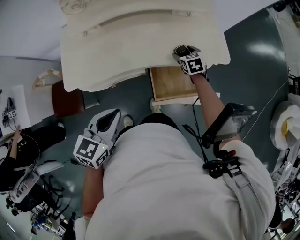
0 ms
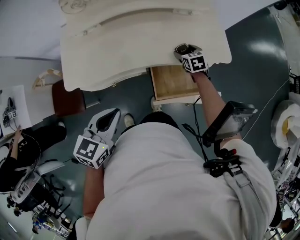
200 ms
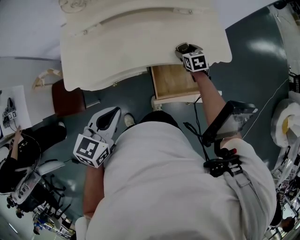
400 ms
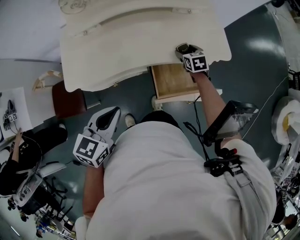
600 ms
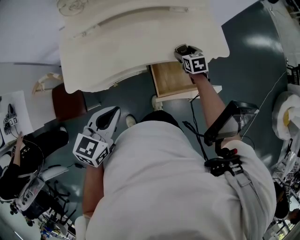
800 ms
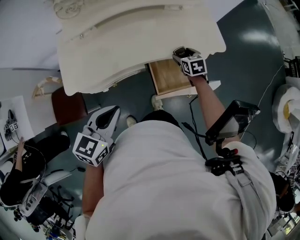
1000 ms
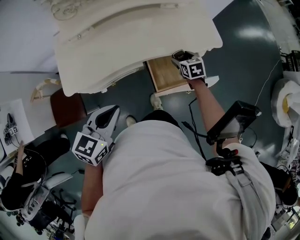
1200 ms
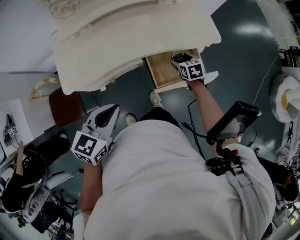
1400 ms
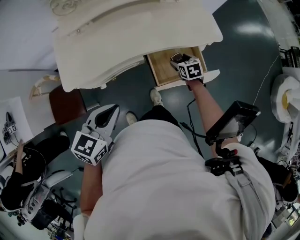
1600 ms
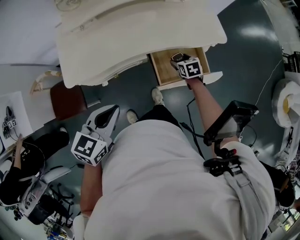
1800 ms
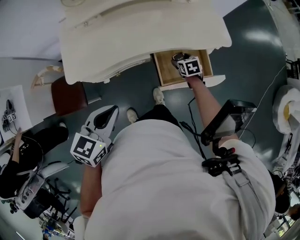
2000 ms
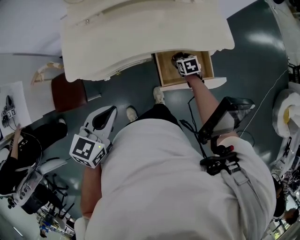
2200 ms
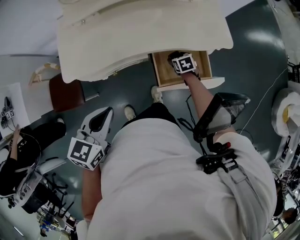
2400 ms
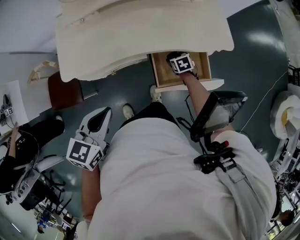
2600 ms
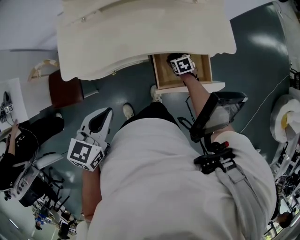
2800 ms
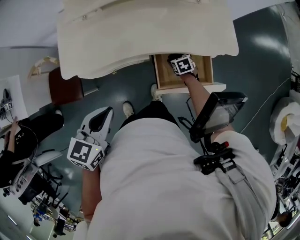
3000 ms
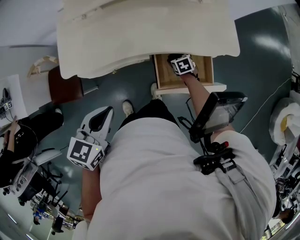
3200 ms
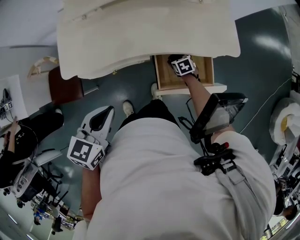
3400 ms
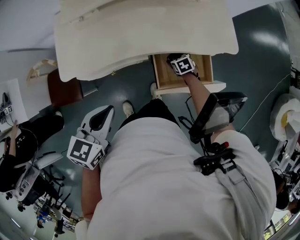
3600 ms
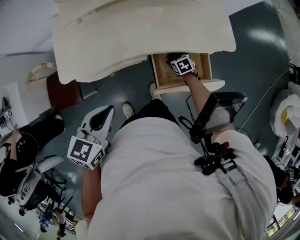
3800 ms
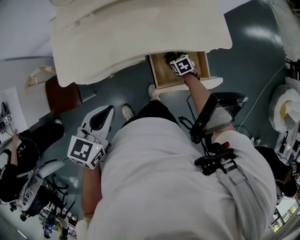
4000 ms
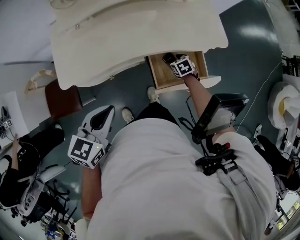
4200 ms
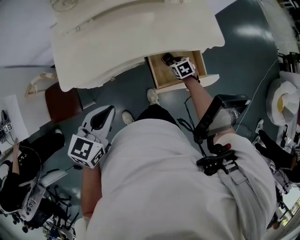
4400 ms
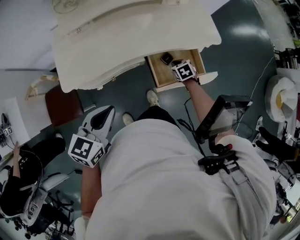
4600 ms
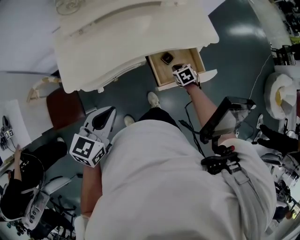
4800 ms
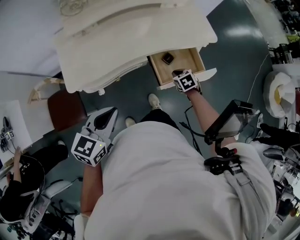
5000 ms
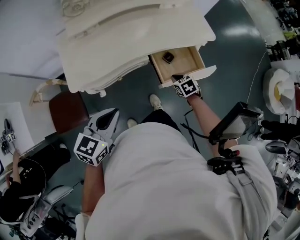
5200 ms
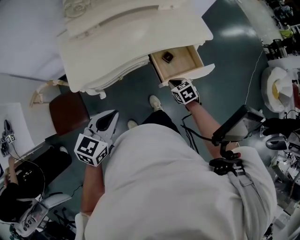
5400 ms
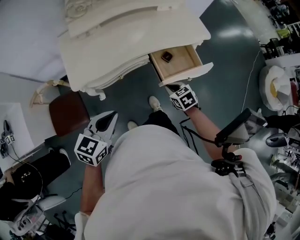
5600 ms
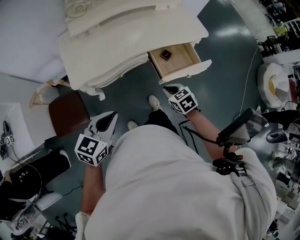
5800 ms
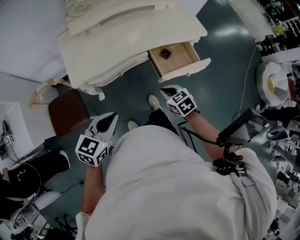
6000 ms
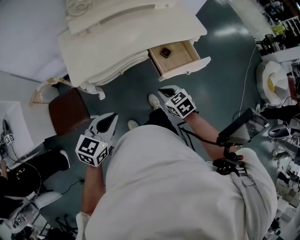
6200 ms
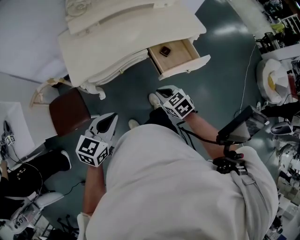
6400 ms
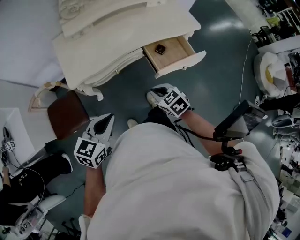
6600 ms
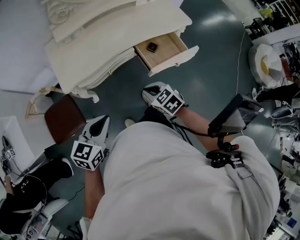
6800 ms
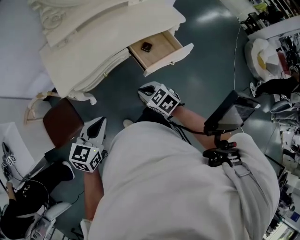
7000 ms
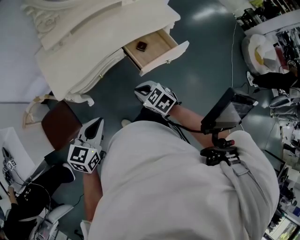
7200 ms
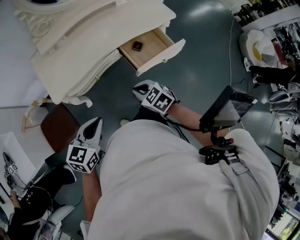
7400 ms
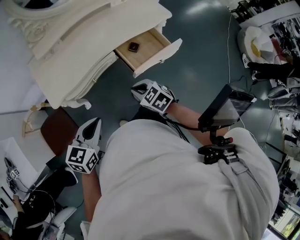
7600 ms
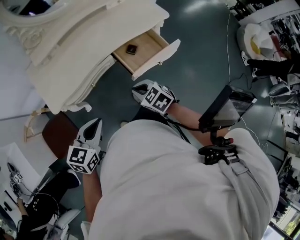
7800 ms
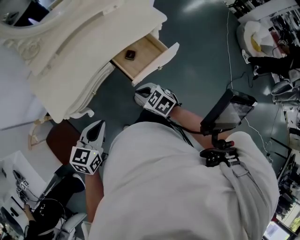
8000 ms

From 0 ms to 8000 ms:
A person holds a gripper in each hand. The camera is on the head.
From 0 ms to 1600 ms: The left gripper moves about 5 cm. The right gripper moves backward, some 15 cm.
From 1600 ms to 3200 ms: The right gripper shifts roughly 10 cm downward.
From 3200 ms to 4800 ms: The right gripper shifts approximately 15 cm backward and upward, and closes up. The left gripper travels to the left by some 5 cm.
From 4800 ms to 6400 ms: The right gripper goes about 35 cm backward, to the left and upward; the left gripper heads backward and to the left, covering about 15 cm.
From 6400 ms to 8000 ms: The right gripper shifts some 5 cm to the right. Meanwhile the left gripper travels to the right and forward by some 10 cm.

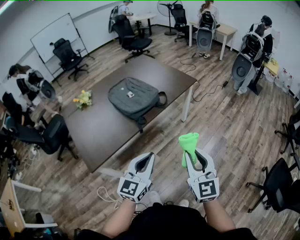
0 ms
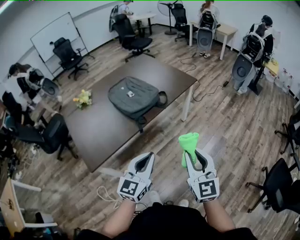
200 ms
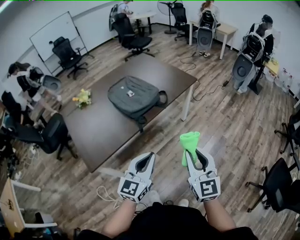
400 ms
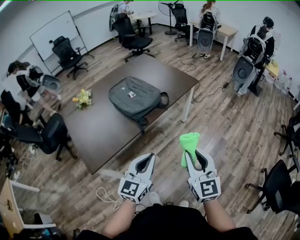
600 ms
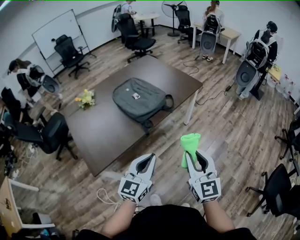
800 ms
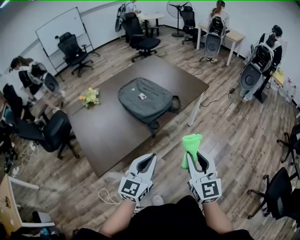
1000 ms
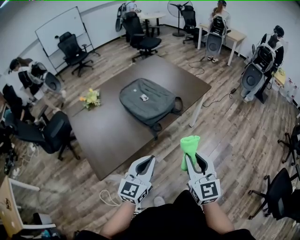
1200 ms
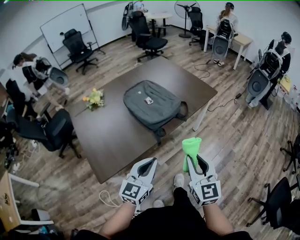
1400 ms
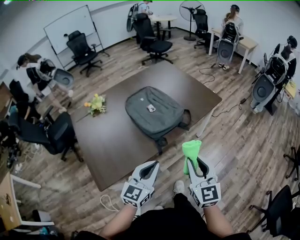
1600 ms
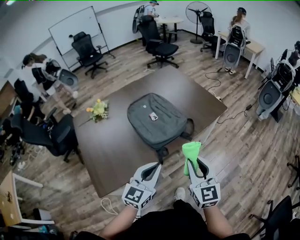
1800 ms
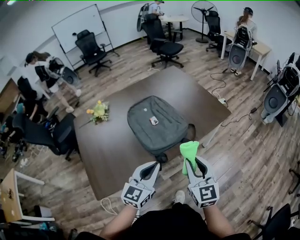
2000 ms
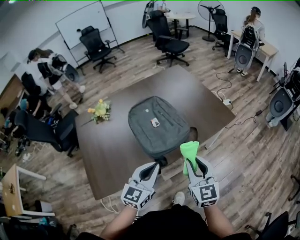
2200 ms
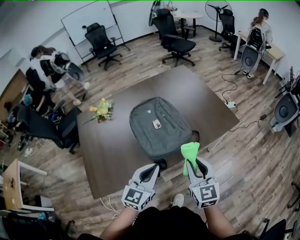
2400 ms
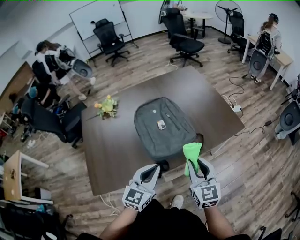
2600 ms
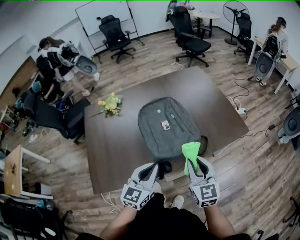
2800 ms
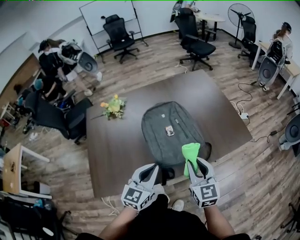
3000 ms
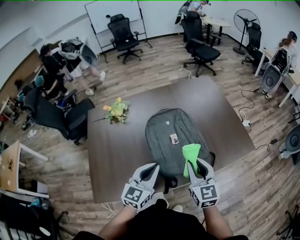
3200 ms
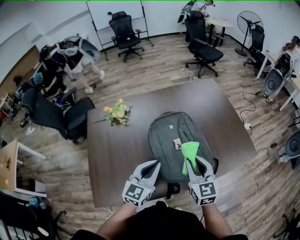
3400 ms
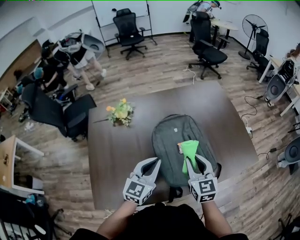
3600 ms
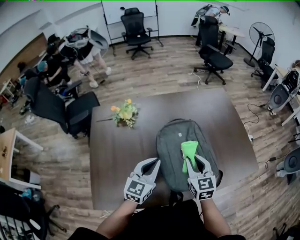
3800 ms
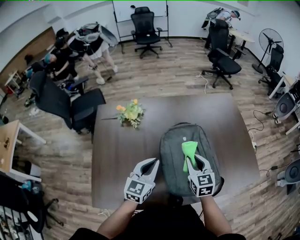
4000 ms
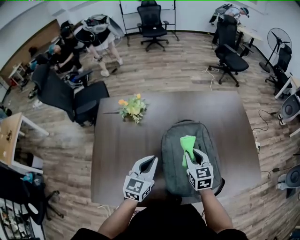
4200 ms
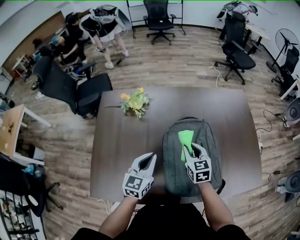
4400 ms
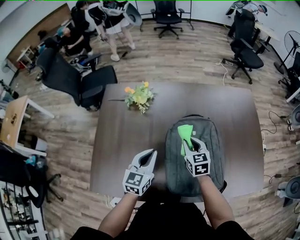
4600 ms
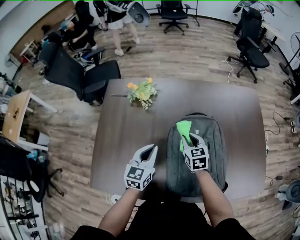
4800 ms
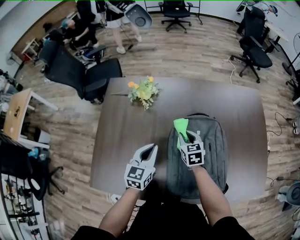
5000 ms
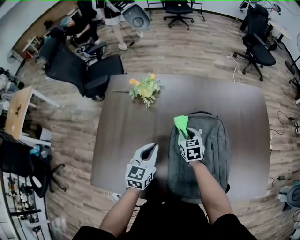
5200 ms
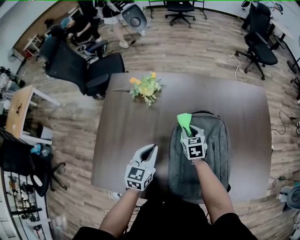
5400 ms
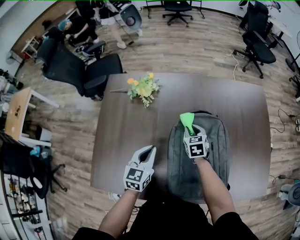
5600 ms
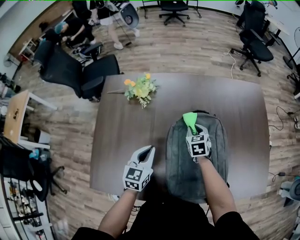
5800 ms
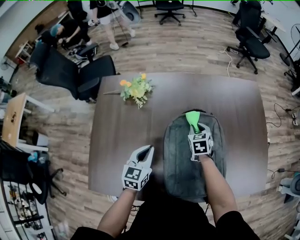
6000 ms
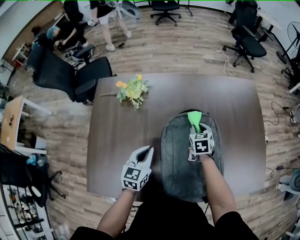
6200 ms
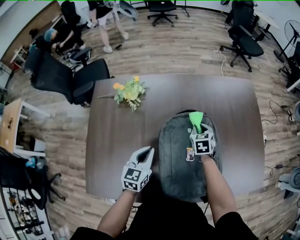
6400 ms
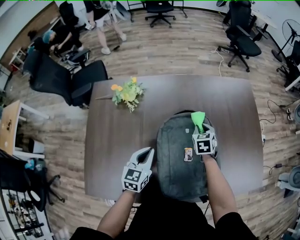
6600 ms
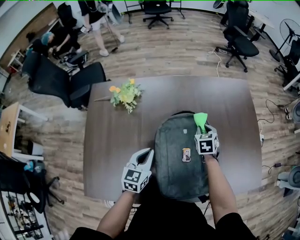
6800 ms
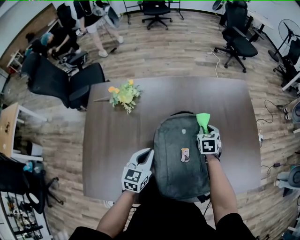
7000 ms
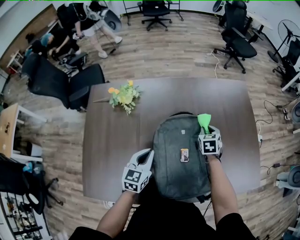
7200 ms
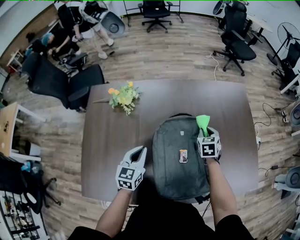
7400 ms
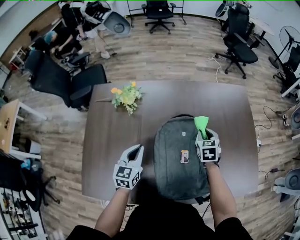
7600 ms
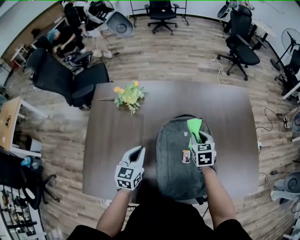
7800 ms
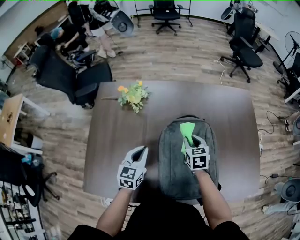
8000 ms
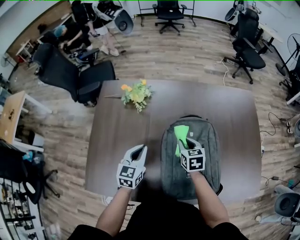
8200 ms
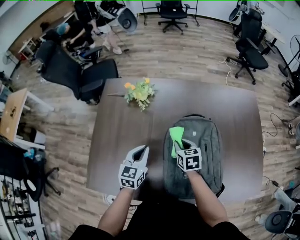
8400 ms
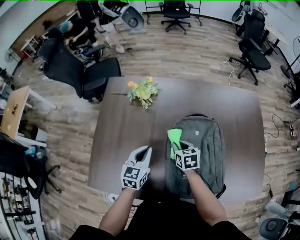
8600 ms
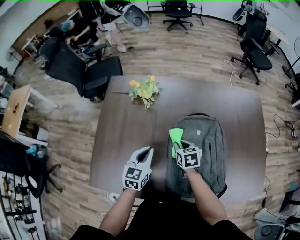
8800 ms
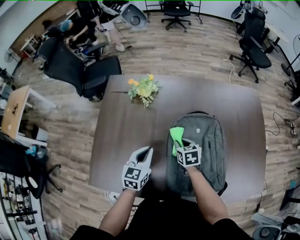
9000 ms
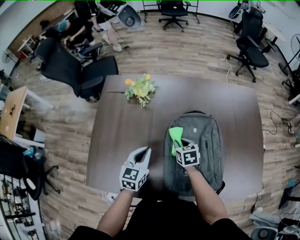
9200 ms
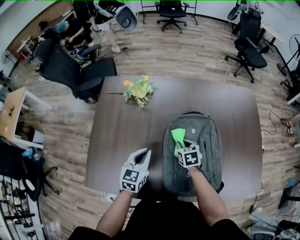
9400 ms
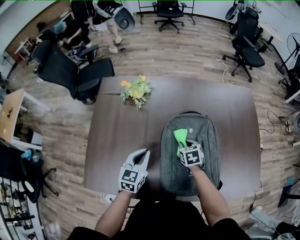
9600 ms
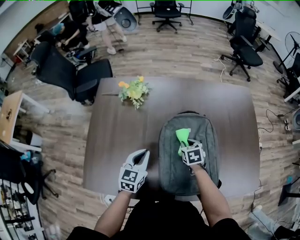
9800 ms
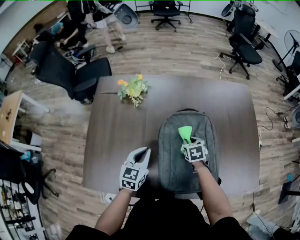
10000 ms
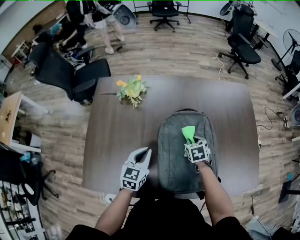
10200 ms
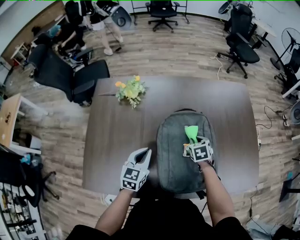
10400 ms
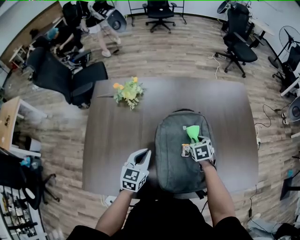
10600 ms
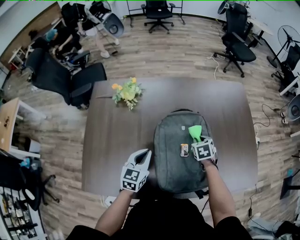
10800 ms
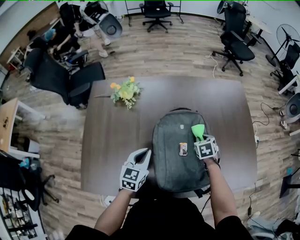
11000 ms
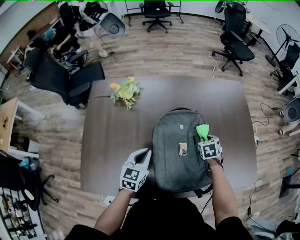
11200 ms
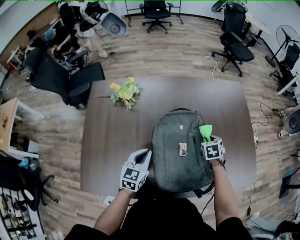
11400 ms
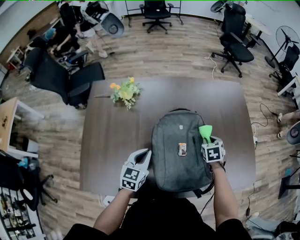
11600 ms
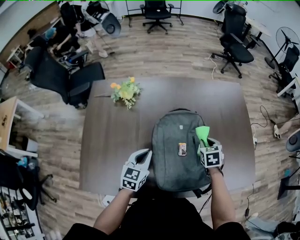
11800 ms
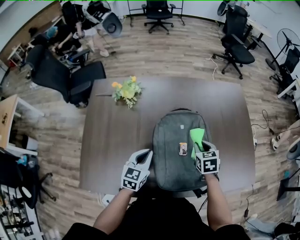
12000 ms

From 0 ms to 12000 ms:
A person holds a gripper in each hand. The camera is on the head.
From 0 ms to 1600 ms: The grippers both shift forward and to the left by roughly 15 cm.
From 1600 ms to 3000 ms: Both grippers move forward, some 20 cm. The right gripper changes its angle by some 20 degrees, while the left gripper swivels approximately 20 degrees.
From 3000 ms to 4400 ms: Both grippers move forward and to the left, about 25 cm. The left gripper turns by about 20 degrees; the right gripper changes its angle by some 20 degrees.
From 4400 ms to 6000 ms: The left gripper travels downward by approximately 5 cm, while the right gripper is displaced forward and downward by approximately 15 cm.
From 6000 ms to 7600 ms: The right gripper shifts about 10 cm to the right and upward.
From 7600 ms to 9000 ms: The right gripper shifts some 20 cm to the left, and rotates some 30 degrees.
From 9000 ms to 10400 ms: The right gripper moves to the right, approximately 15 cm.
From 10400 ms to 12000 ms: The right gripper travels upward by about 5 cm, and goes to the right and returns, roughly 10 cm each way.

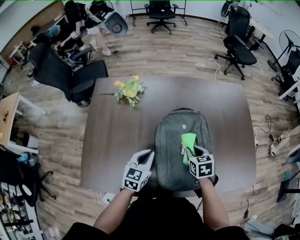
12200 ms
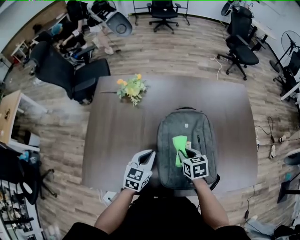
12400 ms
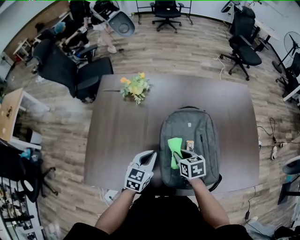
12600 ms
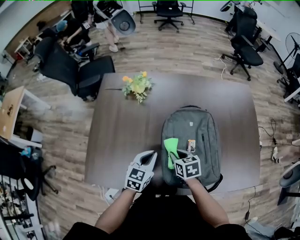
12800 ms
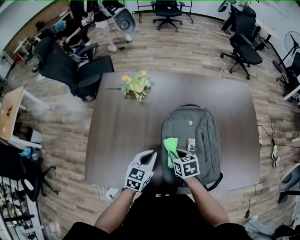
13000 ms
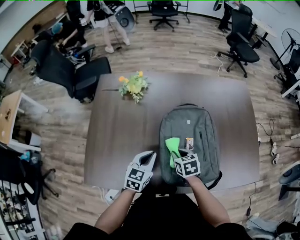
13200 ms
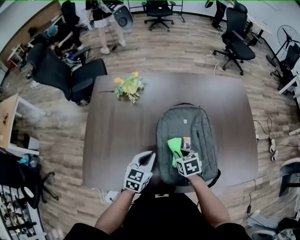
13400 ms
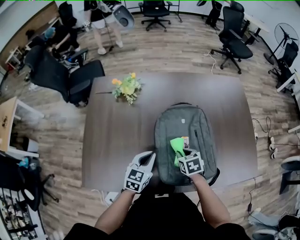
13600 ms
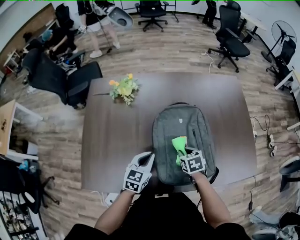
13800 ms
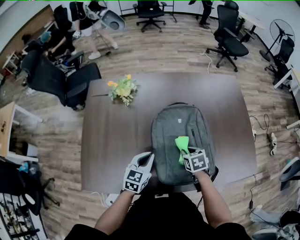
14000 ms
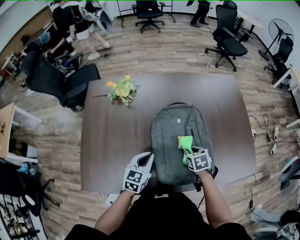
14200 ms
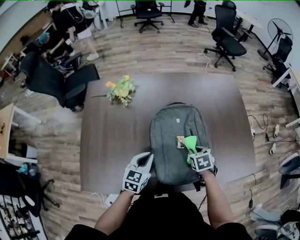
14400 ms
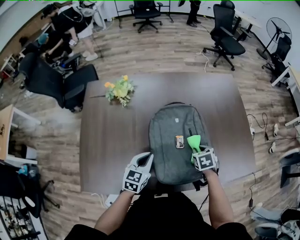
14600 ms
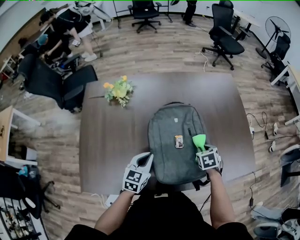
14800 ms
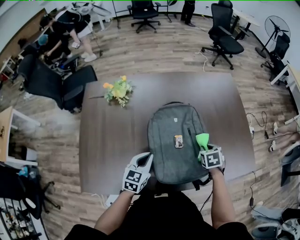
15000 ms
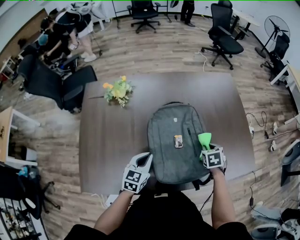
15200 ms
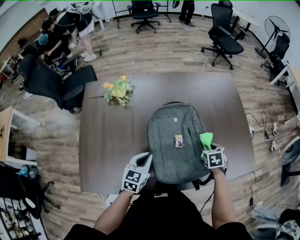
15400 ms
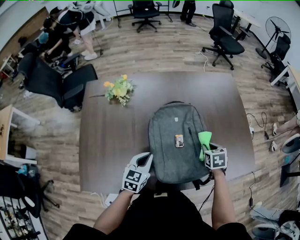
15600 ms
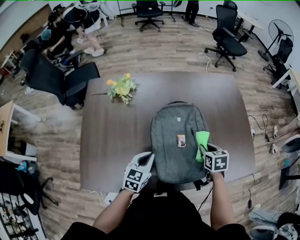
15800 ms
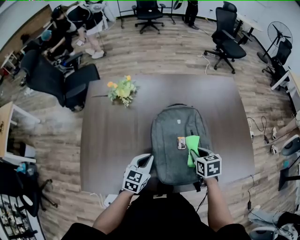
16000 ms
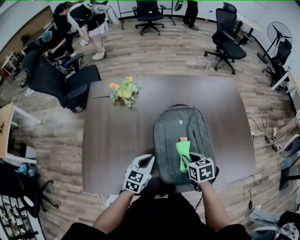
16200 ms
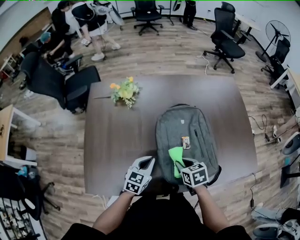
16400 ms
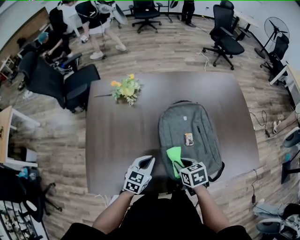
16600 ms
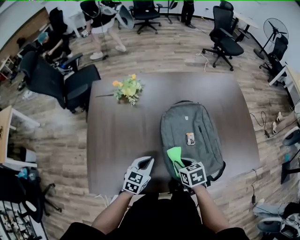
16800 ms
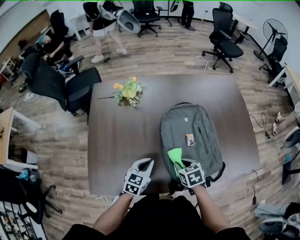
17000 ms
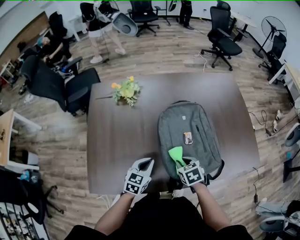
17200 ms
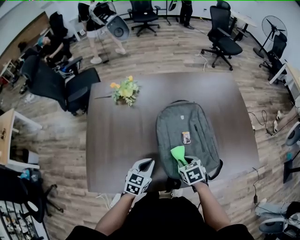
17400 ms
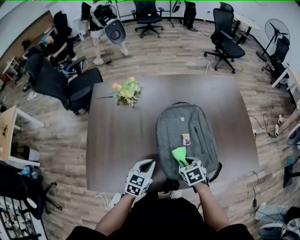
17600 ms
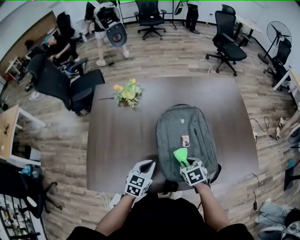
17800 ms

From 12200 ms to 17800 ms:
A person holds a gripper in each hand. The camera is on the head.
From 12200 ms to 13600 ms: The right gripper goes about 5 cm downward.
From 13600 ms to 15000 ms: The right gripper goes roughly 15 cm to the right.
From 15000 ms to 16400 ms: The right gripper goes some 20 cm to the left and backward, and swivels about 20 degrees.
From 16400 ms to 17800 ms: The grippers stay close to where they were, moving slightly.
